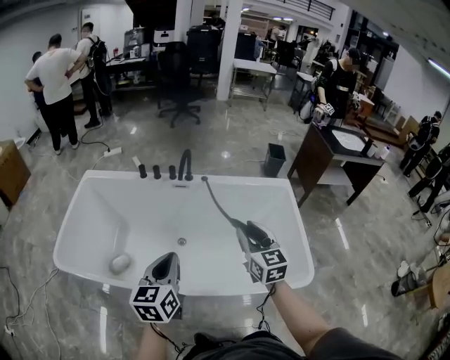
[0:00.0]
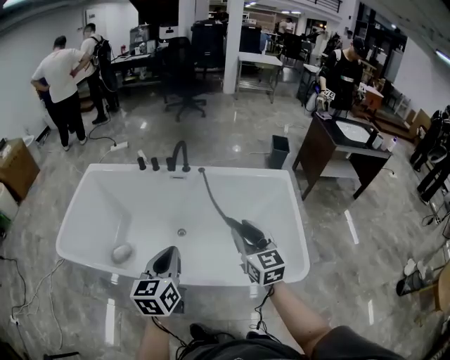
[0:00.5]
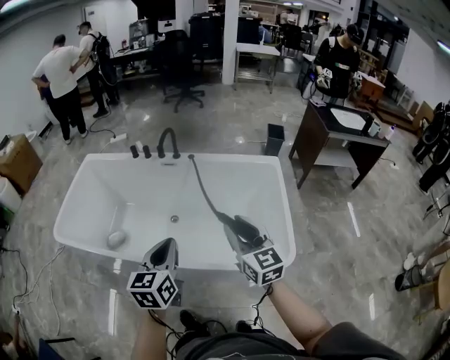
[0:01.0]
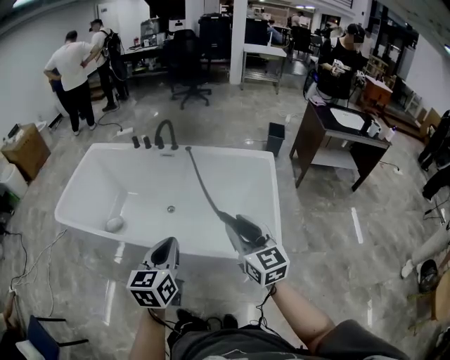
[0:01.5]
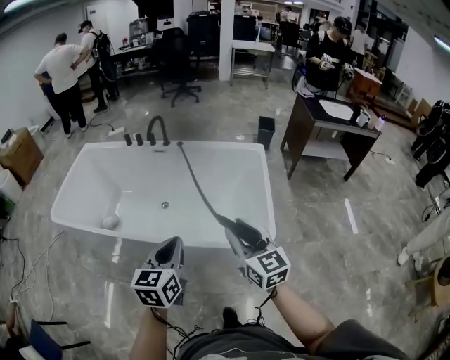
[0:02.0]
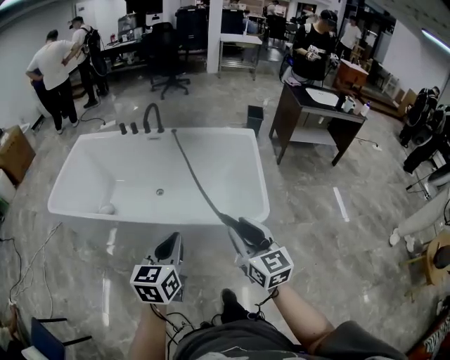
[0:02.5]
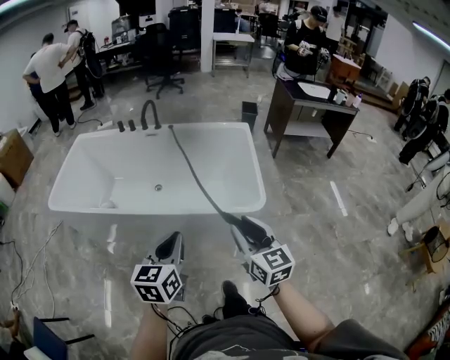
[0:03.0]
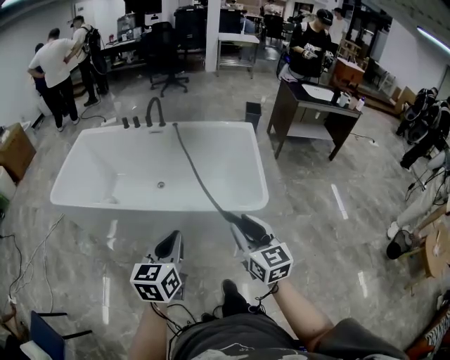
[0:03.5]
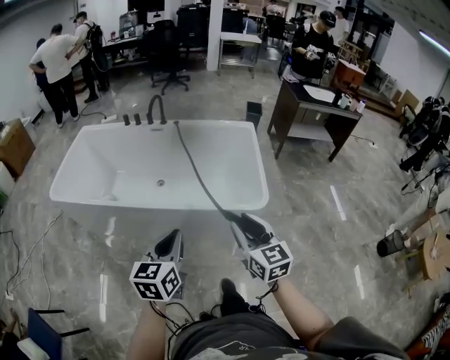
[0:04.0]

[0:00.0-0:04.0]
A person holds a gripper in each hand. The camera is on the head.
0:00.0 to 0:02.0: The left gripper is displaced to the right and backward by approximately 35 cm; the right gripper is displaced backward and to the right by some 30 cm.
0:02.0 to 0:04.0: The two grippers go about 15 cm backward.

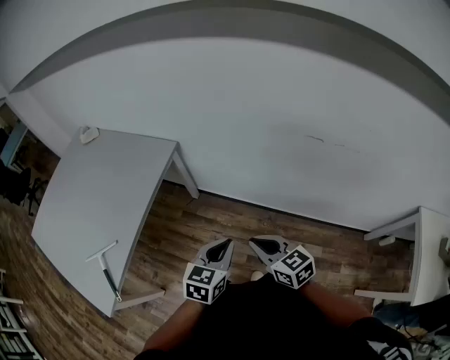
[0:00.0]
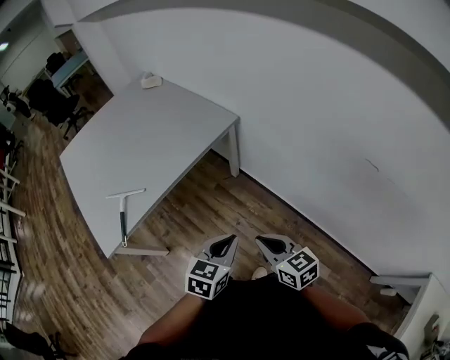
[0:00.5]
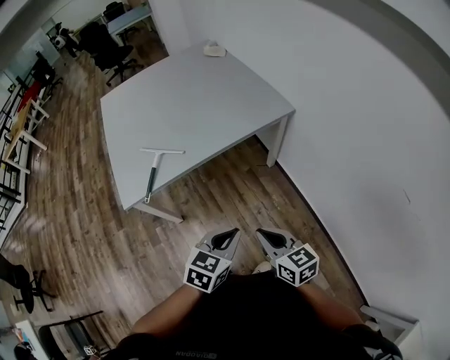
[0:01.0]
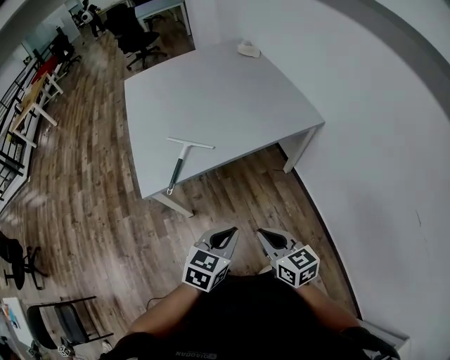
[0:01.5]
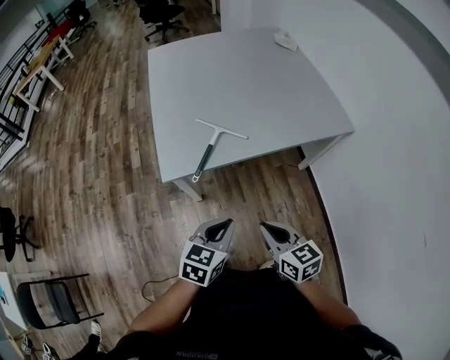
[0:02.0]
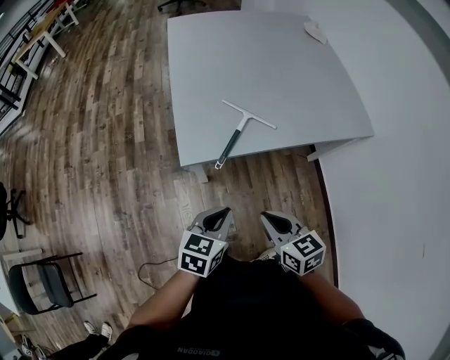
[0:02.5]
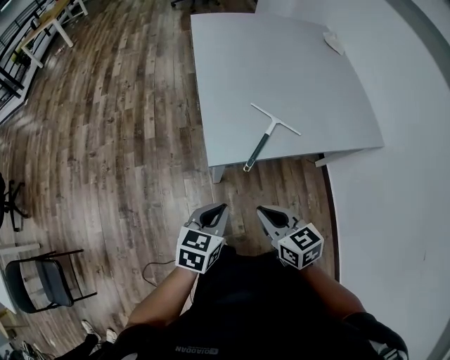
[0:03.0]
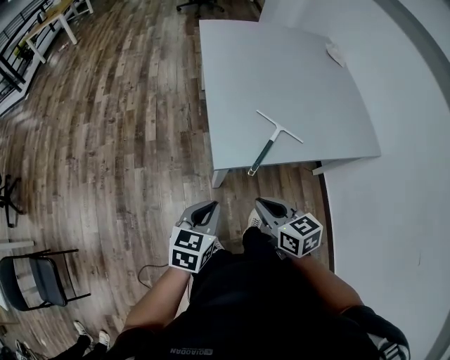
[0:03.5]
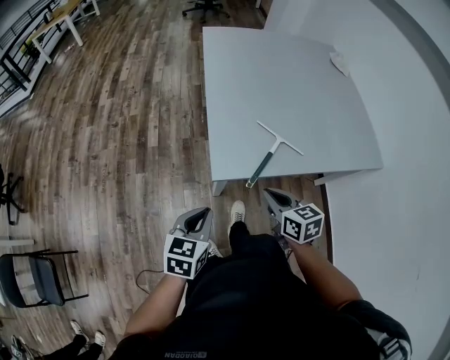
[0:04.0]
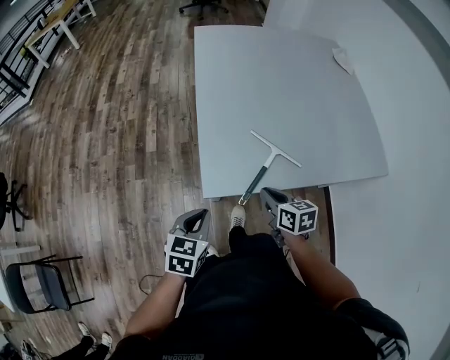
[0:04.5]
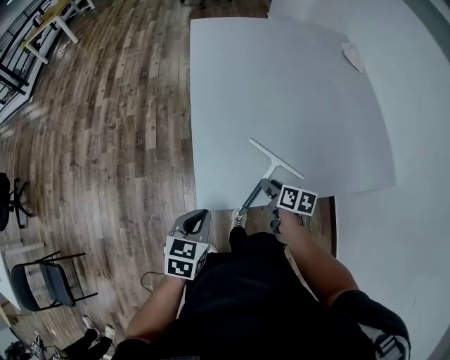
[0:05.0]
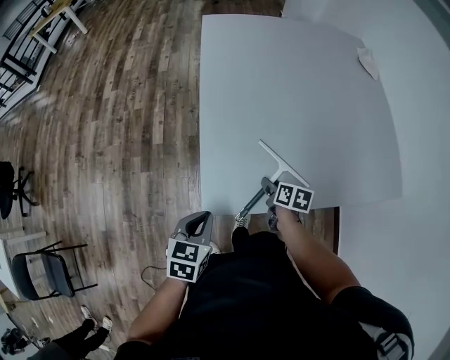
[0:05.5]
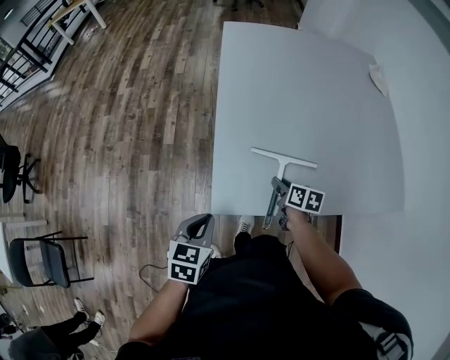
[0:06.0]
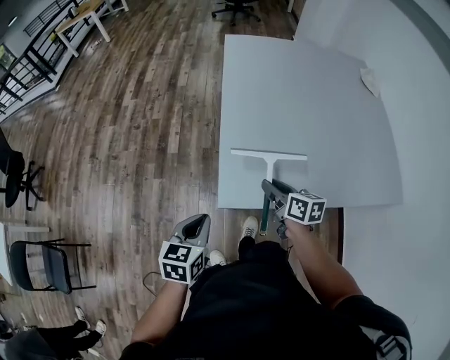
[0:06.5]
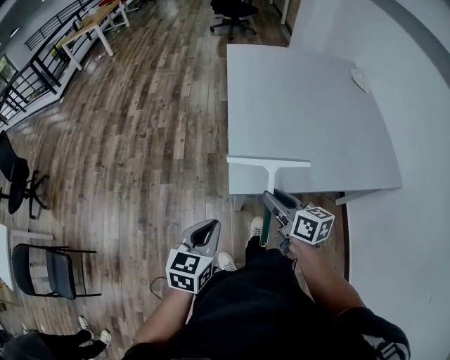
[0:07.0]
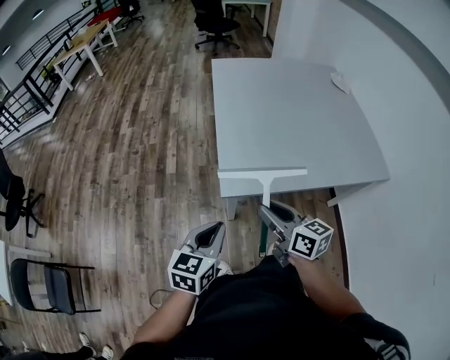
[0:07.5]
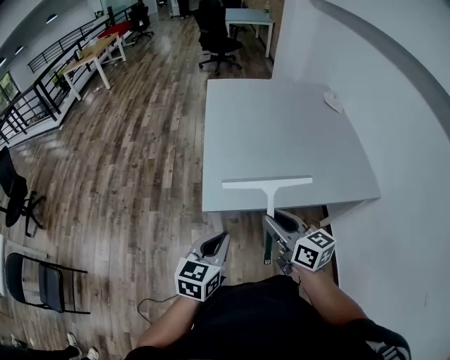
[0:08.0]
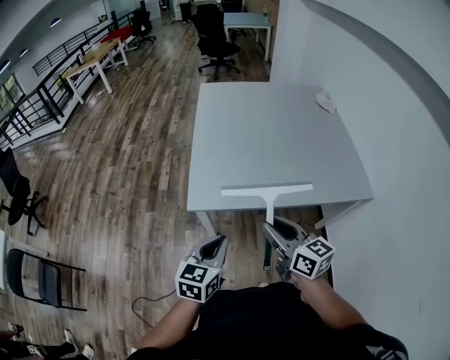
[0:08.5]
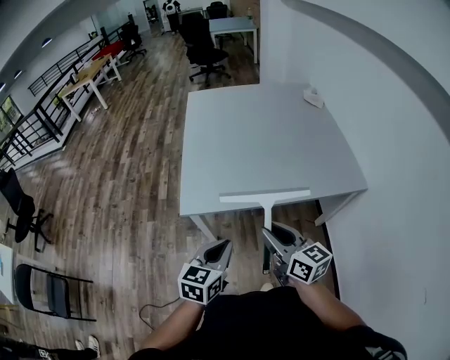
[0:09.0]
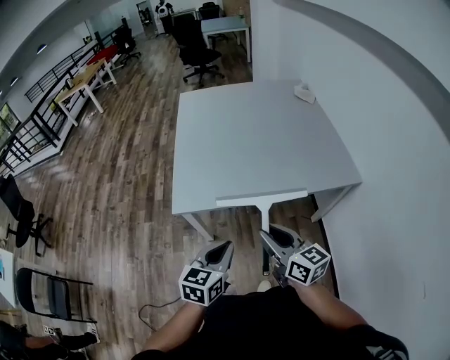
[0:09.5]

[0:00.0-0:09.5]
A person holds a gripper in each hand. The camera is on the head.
0:00.0 to 0:02.0: The left gripper changes place by some 40 cm, and changes its angle by approximately 50 degrees; the right gripper changes place by roughly 35 cm, and changes its angle by some 40 degrees.
0:02.0 to 0:04.0: The left gripper travels to the left by roughly 25 cm. Meanwhile the right gripper goes approximately 25 cm to the left and forward.
0:04.0 to 0:05.5: The right gripper goes approximately 30 cm forward, downward and to the right, turns by roughly 30 degrees, and opens, while the left gripper travels forward by about 15 cm.
0:05.5 to 0:07.5: The left gripper shifts approximately 20 cm backward and upward, and turns by some 20 degrees; the right gripper travels upward, backward and to the left by some 35 cm, and angles its fingers upward, by some 40 degrees.
0:07.5 to 0:09.5: The right gripper travels to the right and backward by about 25 cm. The left gripper heads to the right, covering approximately 25 cm.

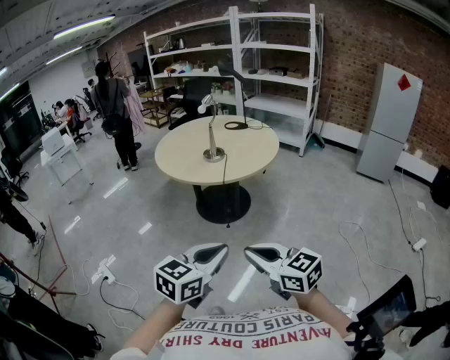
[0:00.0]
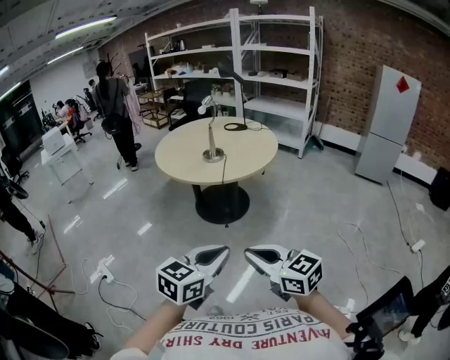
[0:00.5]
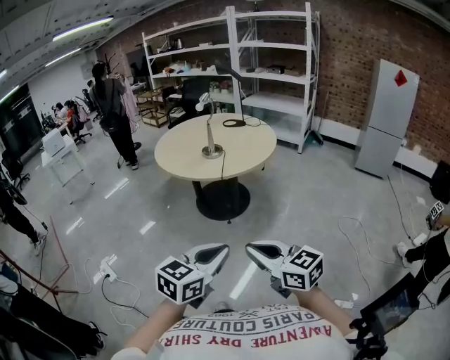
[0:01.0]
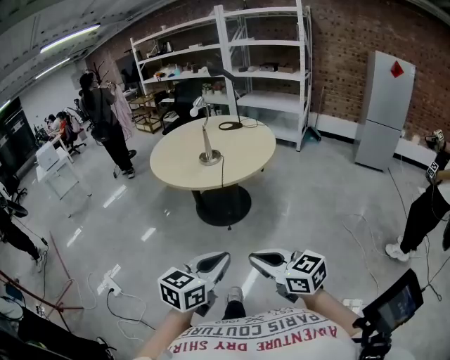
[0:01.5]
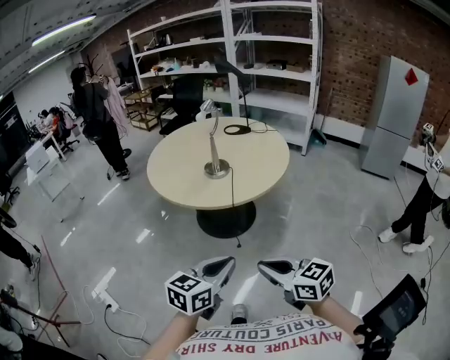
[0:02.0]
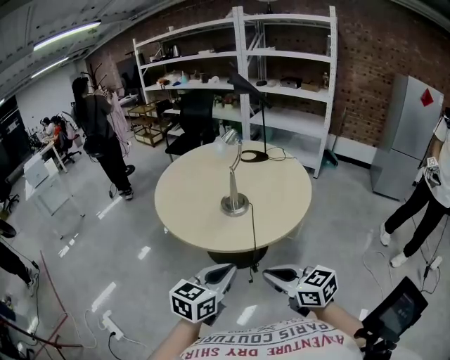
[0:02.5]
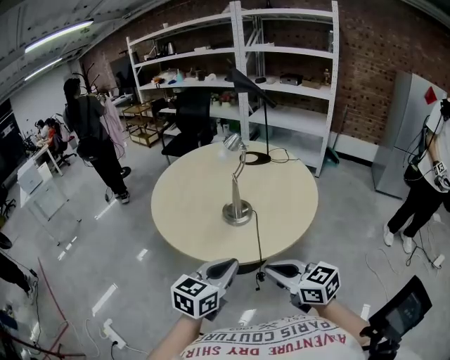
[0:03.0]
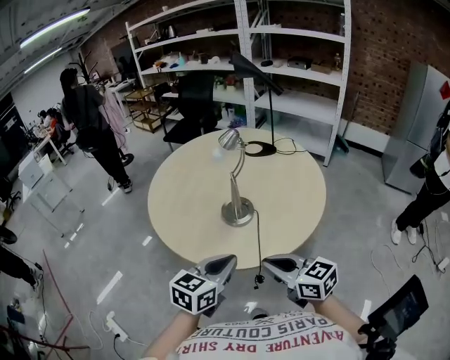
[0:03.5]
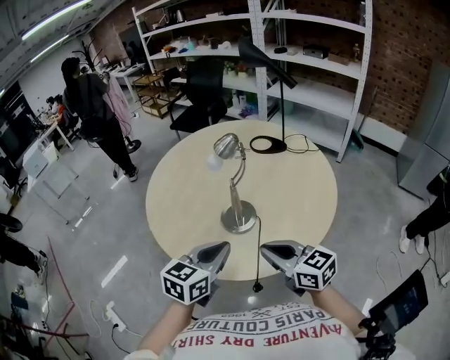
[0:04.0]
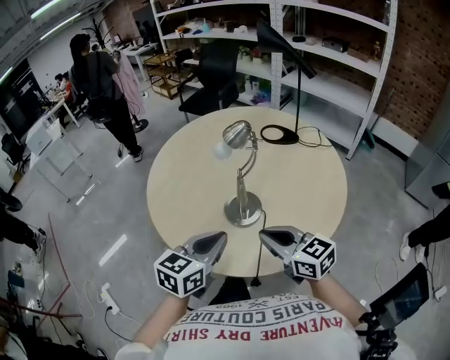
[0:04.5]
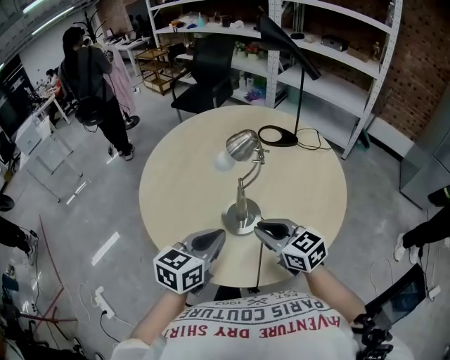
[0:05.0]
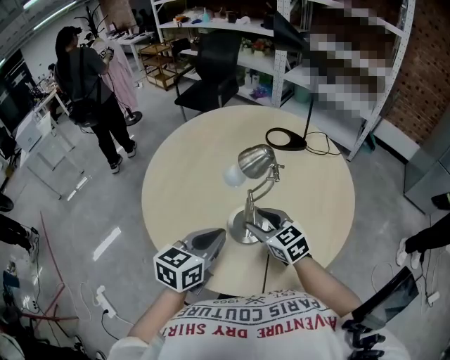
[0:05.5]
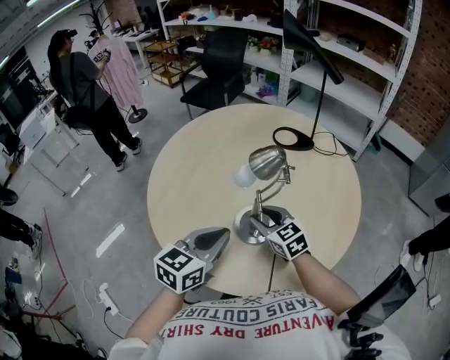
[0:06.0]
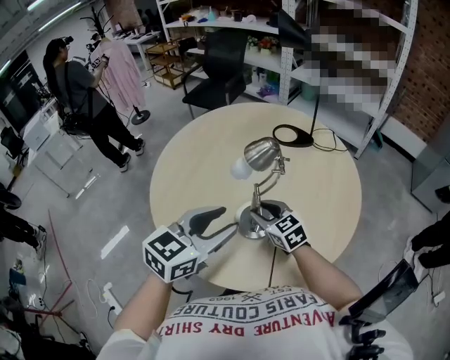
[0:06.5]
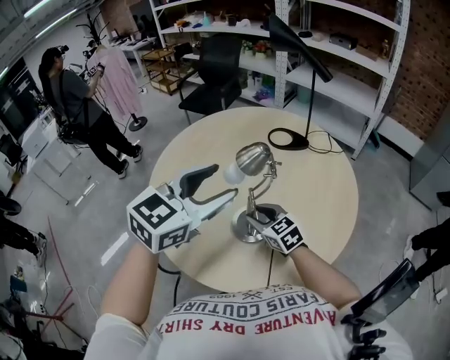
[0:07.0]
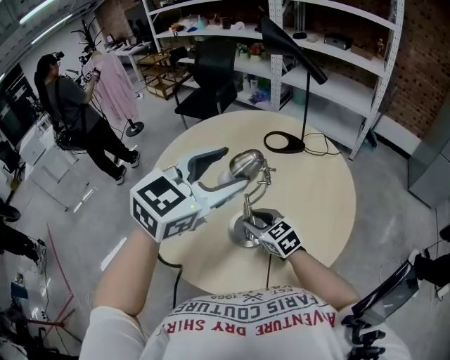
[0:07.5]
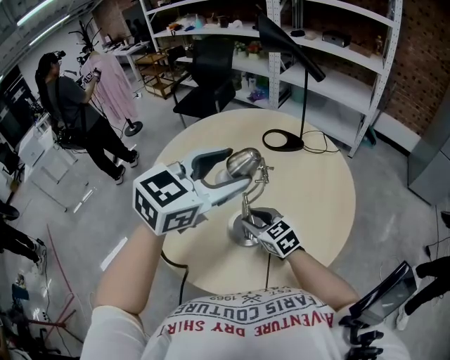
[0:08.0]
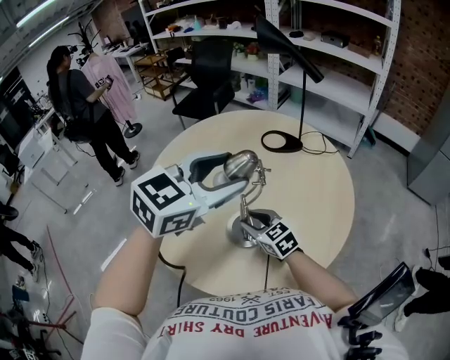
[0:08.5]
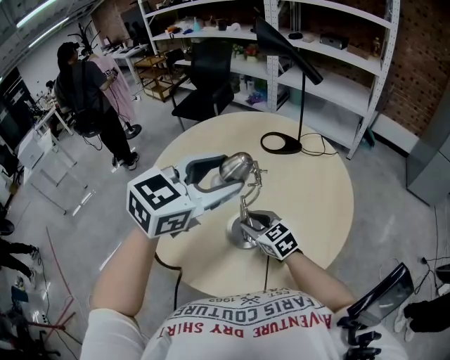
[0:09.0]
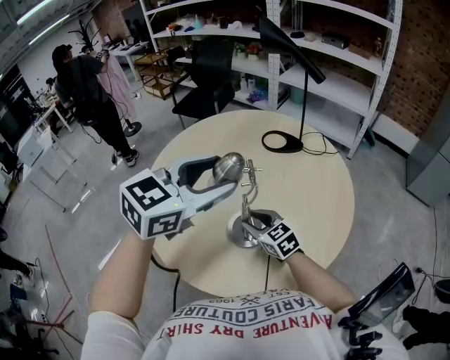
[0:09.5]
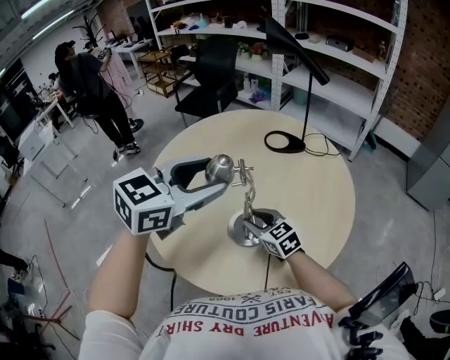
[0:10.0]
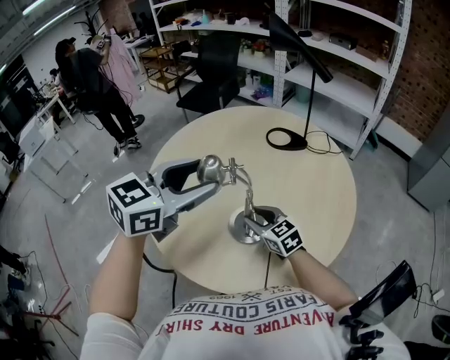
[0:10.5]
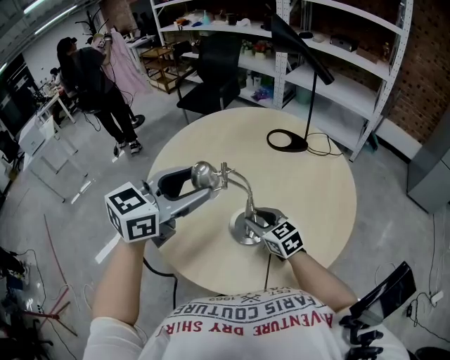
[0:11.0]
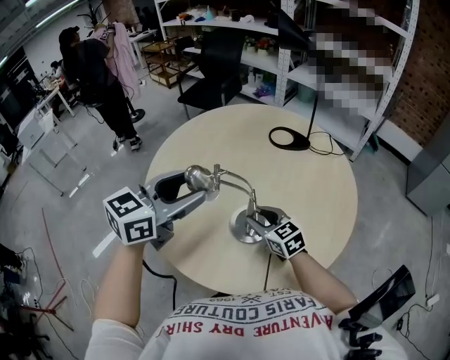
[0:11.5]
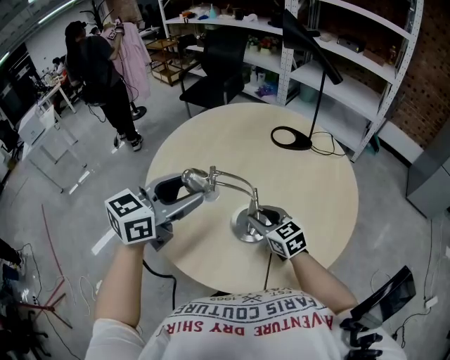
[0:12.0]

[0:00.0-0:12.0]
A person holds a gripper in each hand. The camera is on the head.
0:00.0 to 0:02.0: Both grippers move forward and downward, some 20 cm.
0:02.0 to 0:04.0: Both grippers are carried forward, about 40 cm.
0:04.0 to 0:06.0: The right gripper shifts approximately 25 cm forward and downward, swivels approximately 20 degrees, and opens; the left gripper goes approximately 10 cm forward.
0:06.0 to 0:08.0: The left gripper heads upward, forward and to the right, covering some 20 cm, changes its angle by some 30 degrees, and opens its fingers.
0:08.0 to 0:10.0: The left gripper shifts some 5 cm to the left.
0:10.0 to 0:12.0: The left gripper shifts about 10 cm to the left and downward.

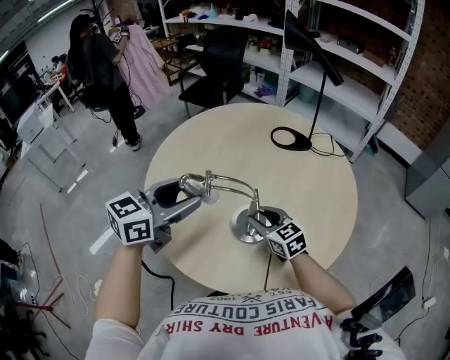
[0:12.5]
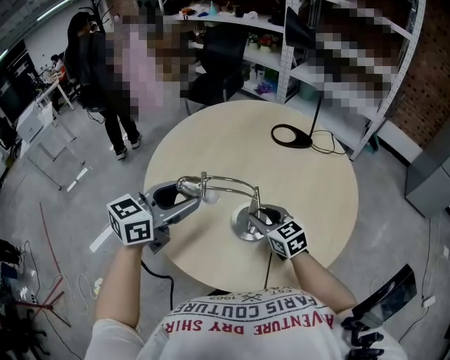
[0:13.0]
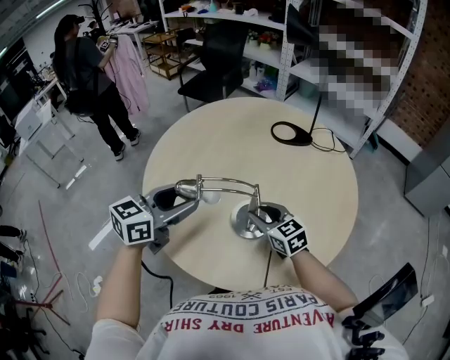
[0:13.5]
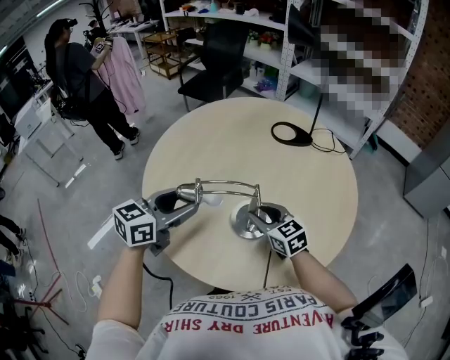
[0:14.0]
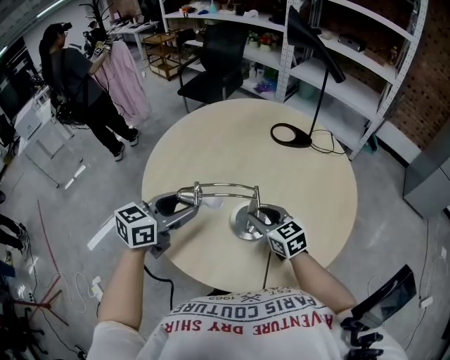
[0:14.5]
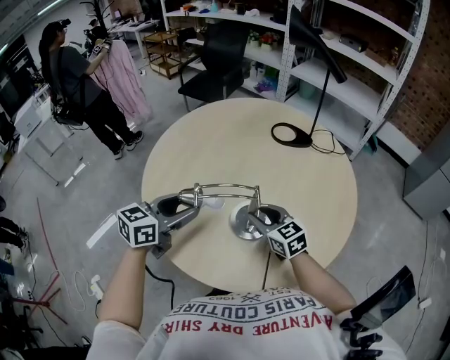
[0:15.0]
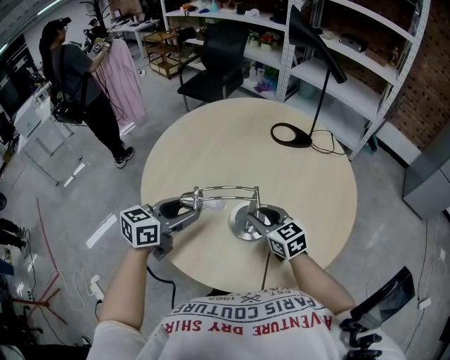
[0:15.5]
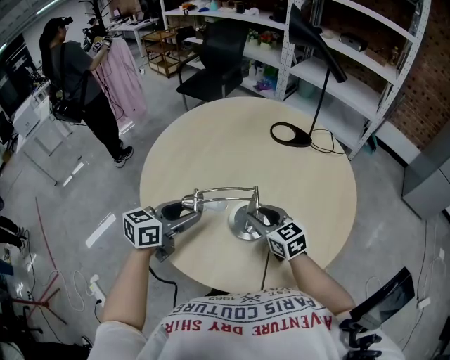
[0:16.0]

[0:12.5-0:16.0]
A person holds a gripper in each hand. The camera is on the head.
0:12.5 to 0:14.5: The left gripper moves downward, about 10 cm.
0:14.5 to 0:16.0: The grippers make only small movements.
